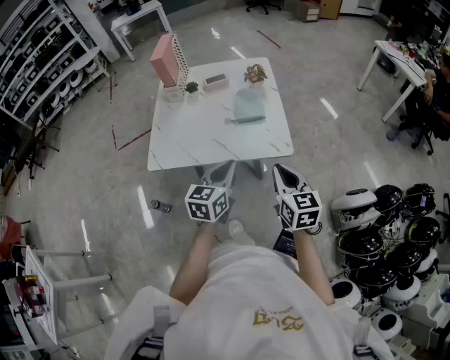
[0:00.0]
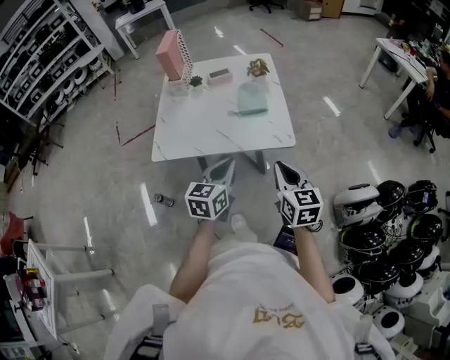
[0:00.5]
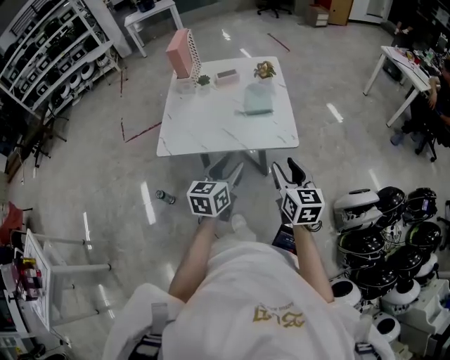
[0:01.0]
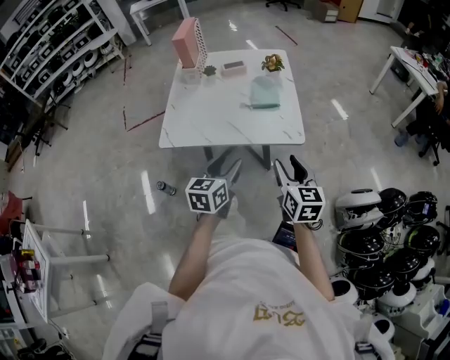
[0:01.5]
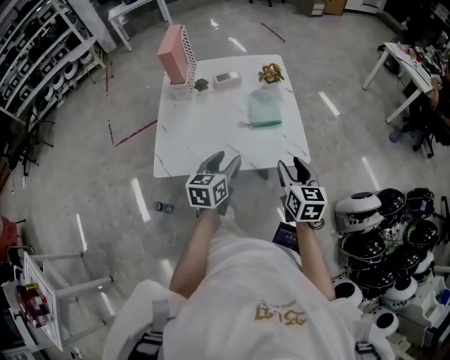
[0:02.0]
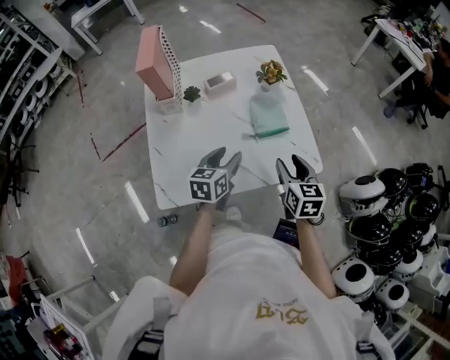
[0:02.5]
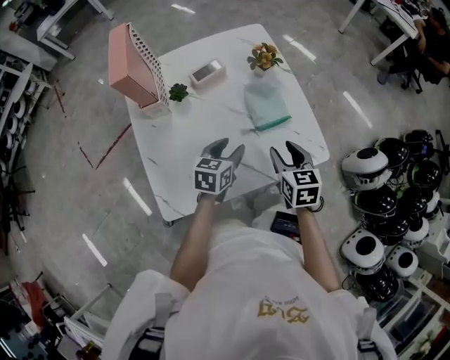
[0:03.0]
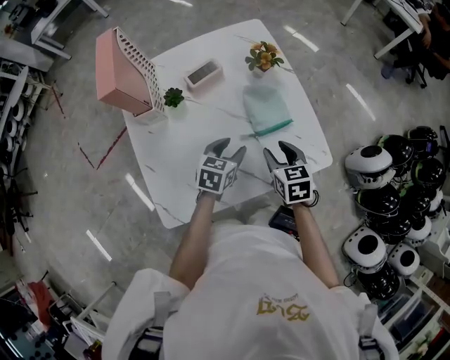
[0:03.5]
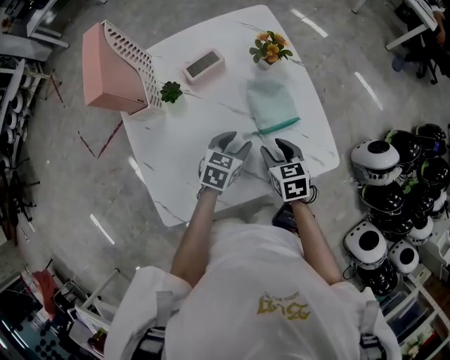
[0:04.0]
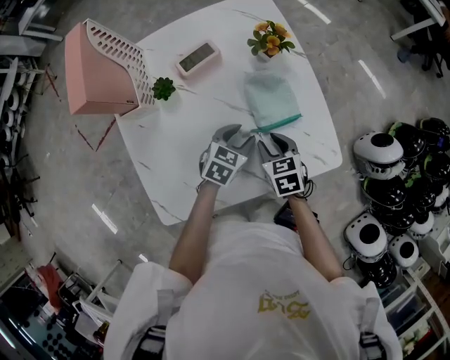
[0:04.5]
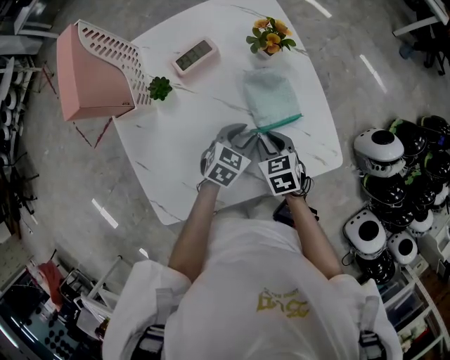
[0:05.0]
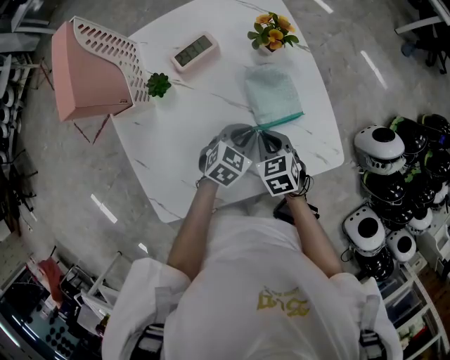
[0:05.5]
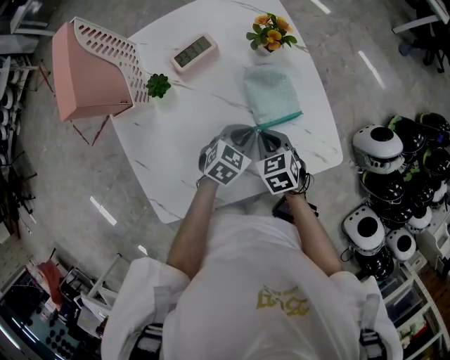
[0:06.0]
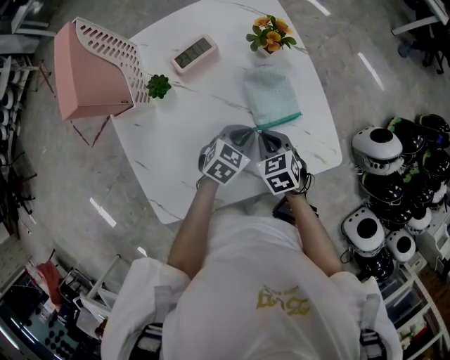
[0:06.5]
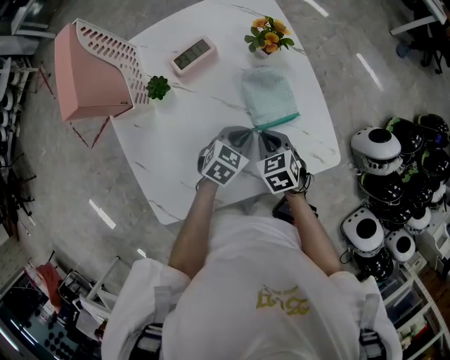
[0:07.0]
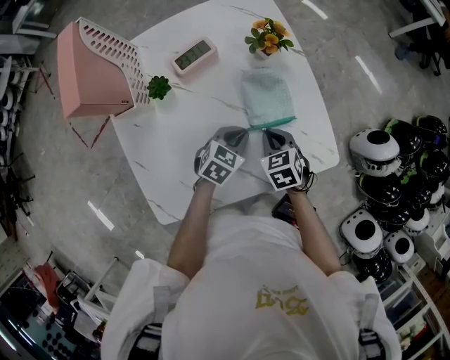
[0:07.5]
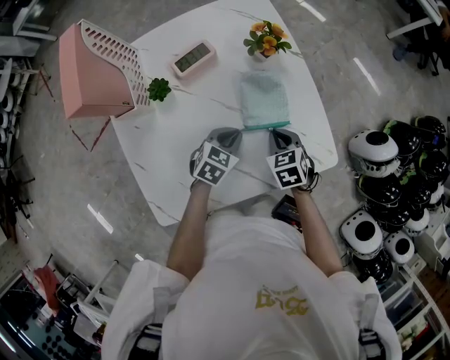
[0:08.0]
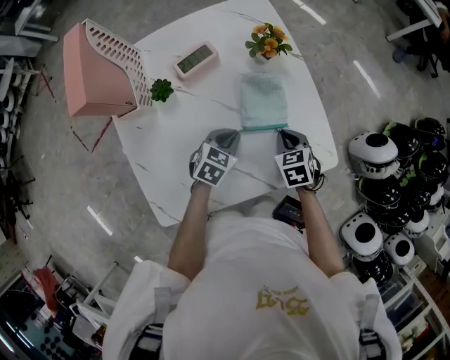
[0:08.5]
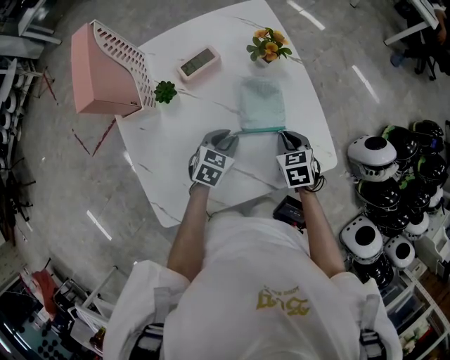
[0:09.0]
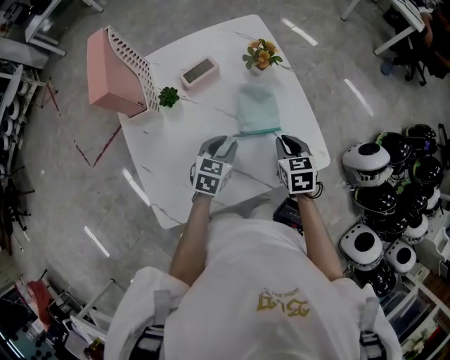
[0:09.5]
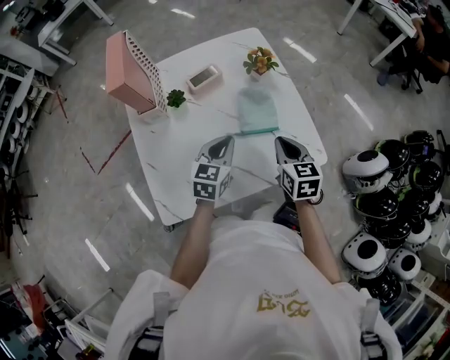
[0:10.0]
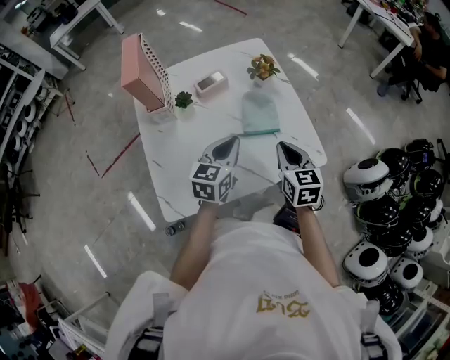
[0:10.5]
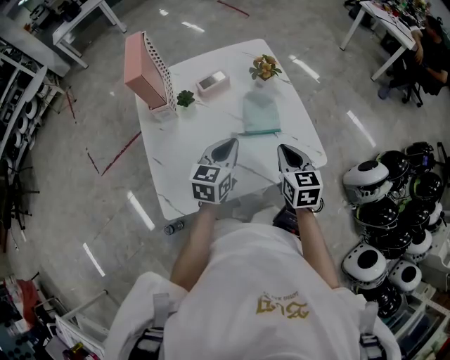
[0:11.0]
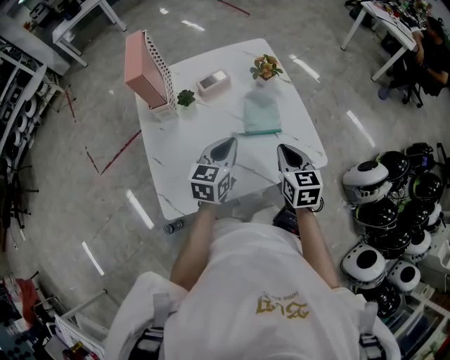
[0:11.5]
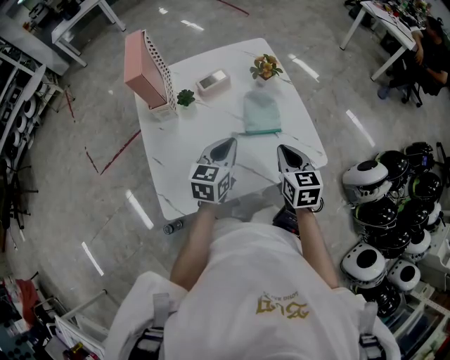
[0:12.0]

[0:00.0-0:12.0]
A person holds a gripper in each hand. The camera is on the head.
0:00.0 to 0:02.0: The right gripper shifts approximately 10 cm forward, and opens its fingers. Meanwhile the left gripper is displaced forward and to the left by approximately 10 cm, and opens.
0:02.0 to 0:04.0: The left gripper travels forward and downward by roughly 25 cm, and changes its angle by some 40 degrees, while the right gripper moves forward, downward and to the left, roughly 30 cm, and turns by some 30 degrees.
0:04.0 to 0:06.0: The left gripper ends up roughly 5 cm from where it was, and closes. Meanwhile the right gripper moves approximately 5 cm, and closes up.
0:06.0 to 0:08.0: The grippers make only small movements.
0:08.0 to 0:10.0: The grippers both shift upward by roughly 15 cm. The right gripper rotates about 30 degrees. Meanwhile the left gripper turns by about 30 degrees, and opens and closes again.
0:10.0 to 0:12.0: There are only small adjustments of the grippers.

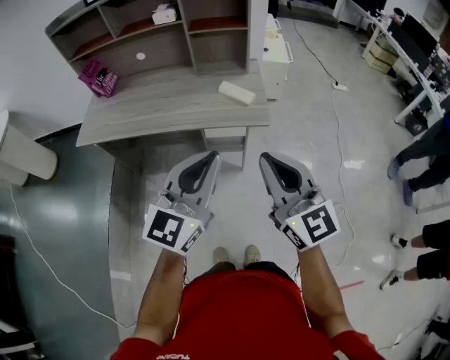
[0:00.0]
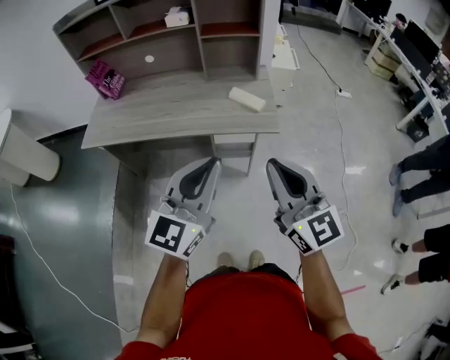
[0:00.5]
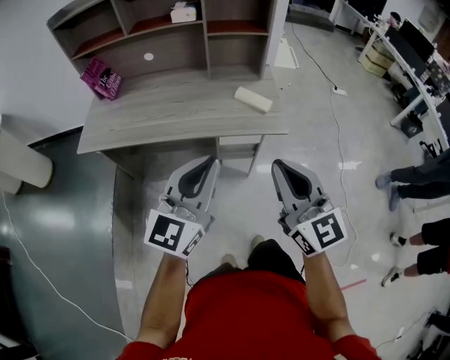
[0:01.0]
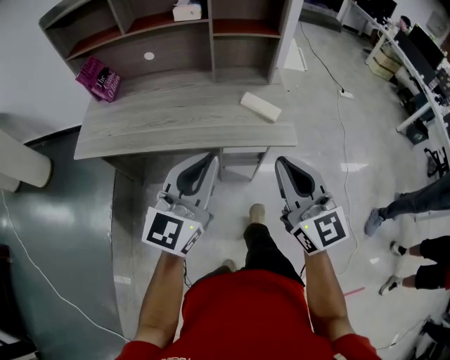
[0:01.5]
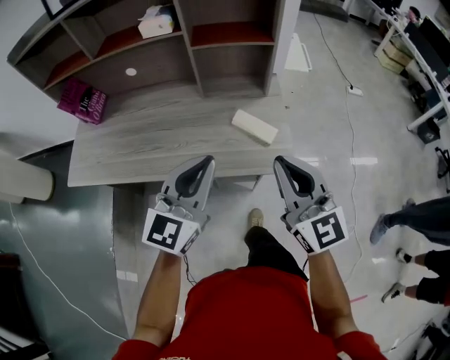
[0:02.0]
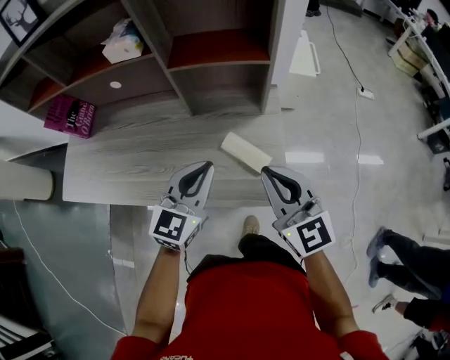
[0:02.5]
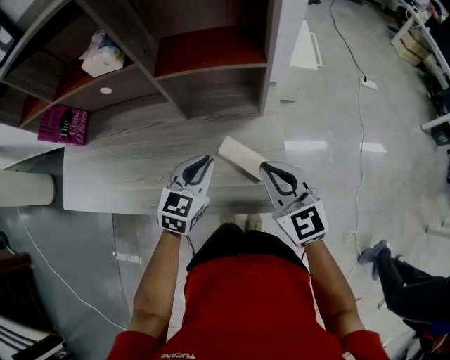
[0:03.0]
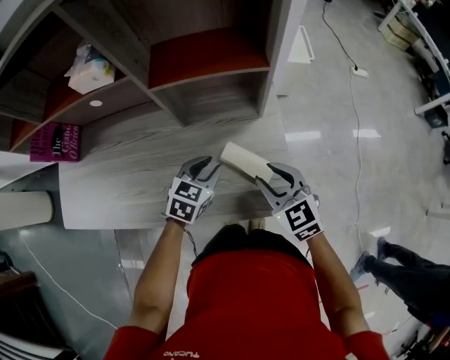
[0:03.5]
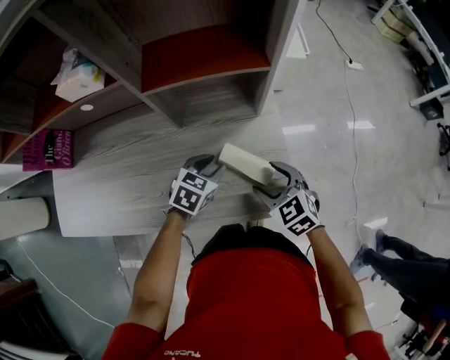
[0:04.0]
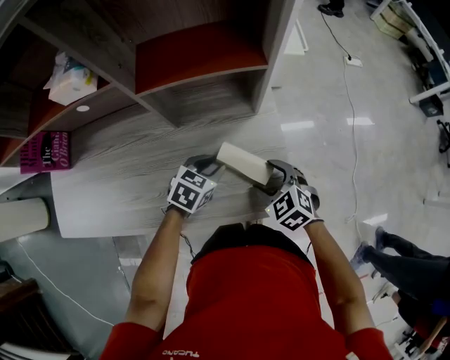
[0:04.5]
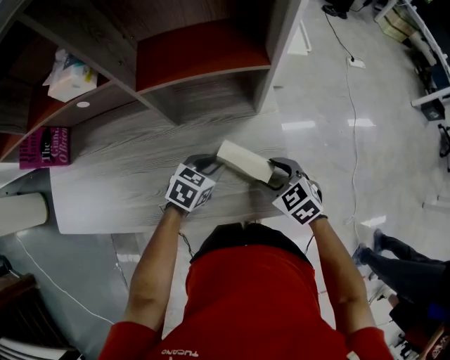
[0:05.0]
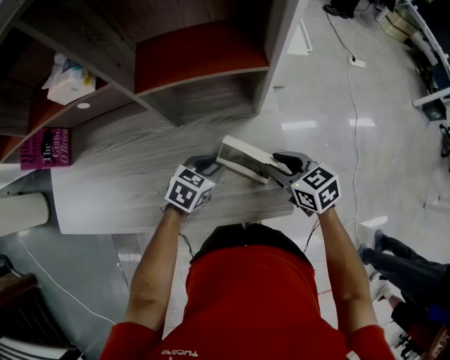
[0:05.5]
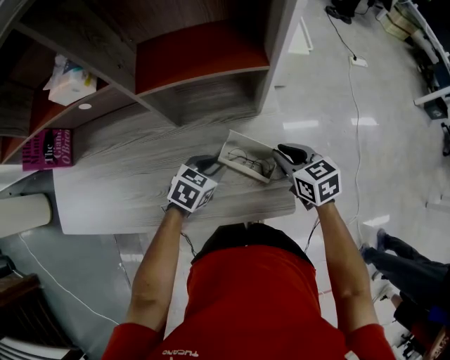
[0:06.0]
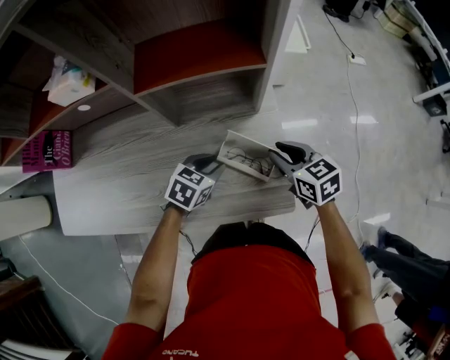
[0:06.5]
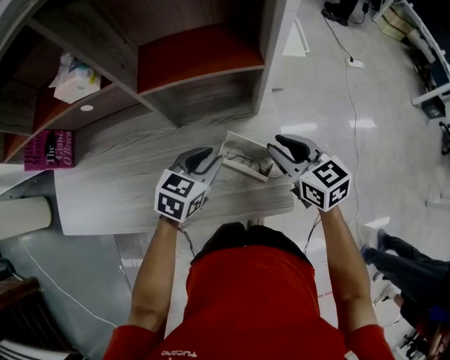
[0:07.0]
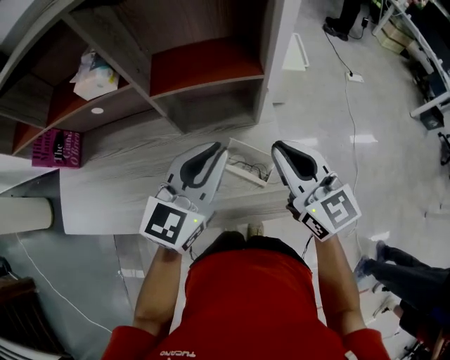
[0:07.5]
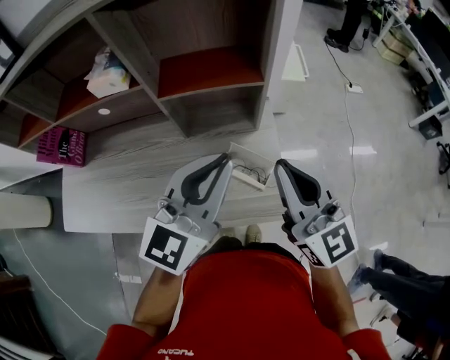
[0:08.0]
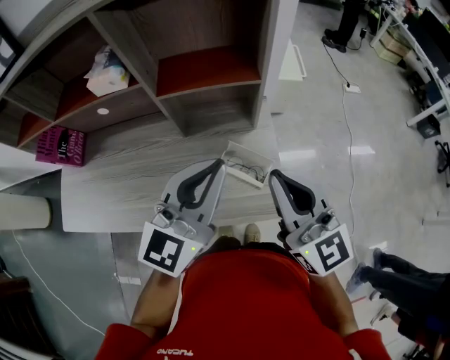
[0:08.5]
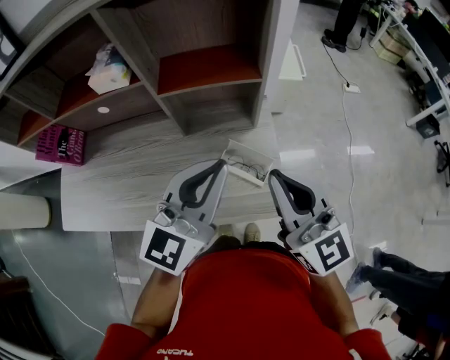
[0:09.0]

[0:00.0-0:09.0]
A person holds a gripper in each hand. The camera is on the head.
0:00.0 to 0:02.0: Both grippers travel together forward, some 25 cm.
0:02.0 to 0:04.5: Both grippers travel together downward and forward, roughly 35 cm. The right gripper tilts its fingers about 50 degrees downward, and opens up. Meanwhile the left gripper angles its fingers downward, by about 50 degrees, and opens.
0:04.5 to 0:07.0: The right gripper shifts roughly 15 cm upward and forward, turns by some 40 degrees, and closes its fingers, while the left gripper shifts some 10 cm upward.
0:07.0 to 0:09.0: The right gripper heads upward and backward, covering roughly 20 cm, rotates some 30 degrees, and closes up. The left gripper moves upward, some 25 cm, tips its fingers upward by some 40 degrees, and closes up.

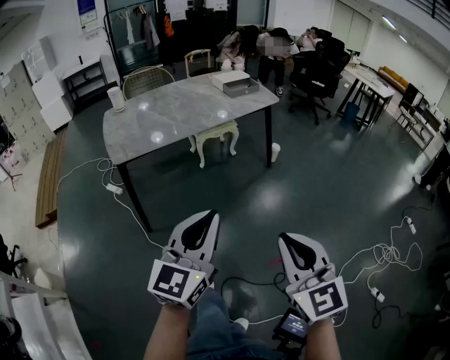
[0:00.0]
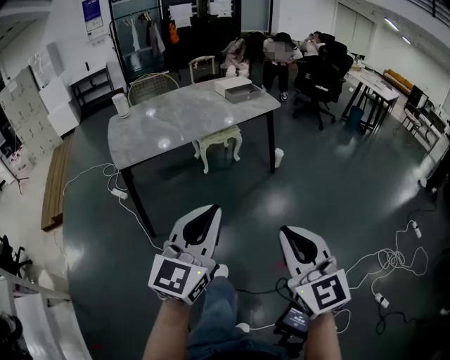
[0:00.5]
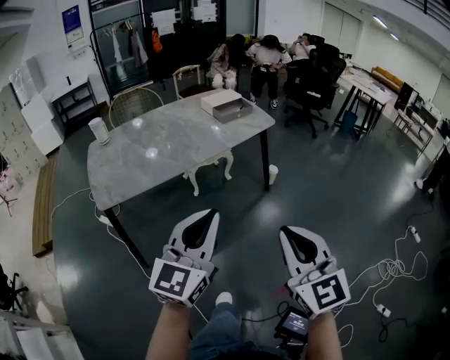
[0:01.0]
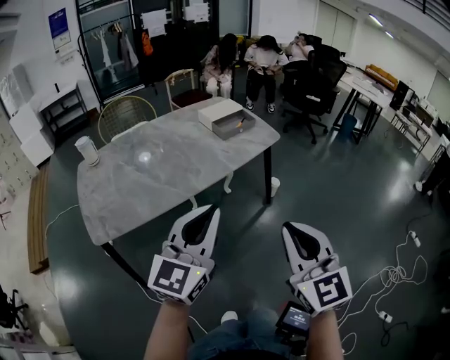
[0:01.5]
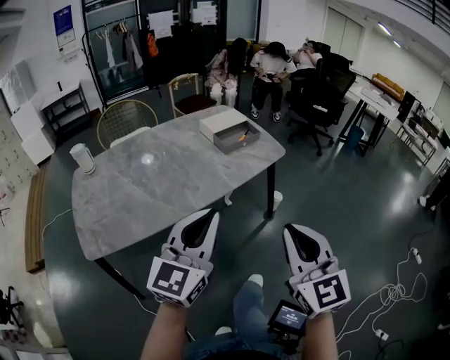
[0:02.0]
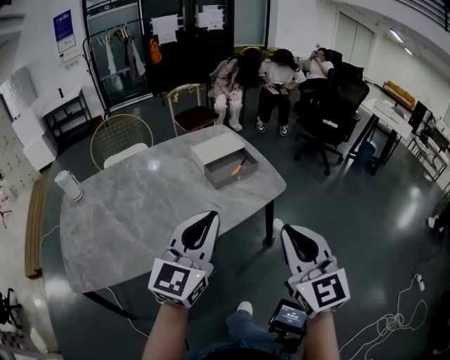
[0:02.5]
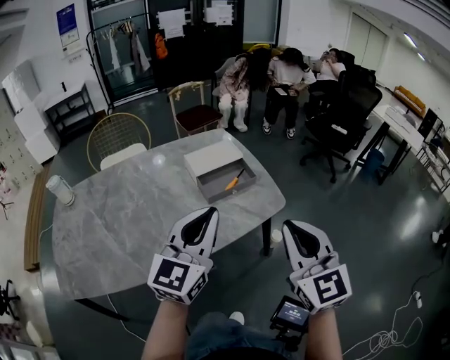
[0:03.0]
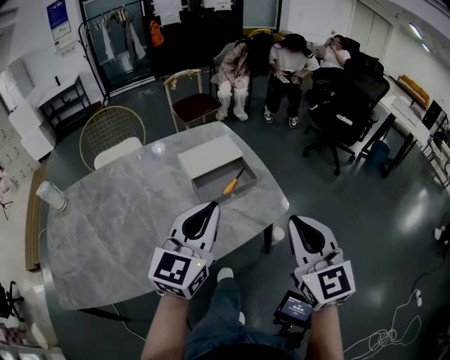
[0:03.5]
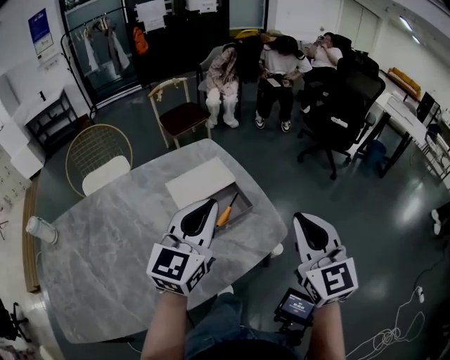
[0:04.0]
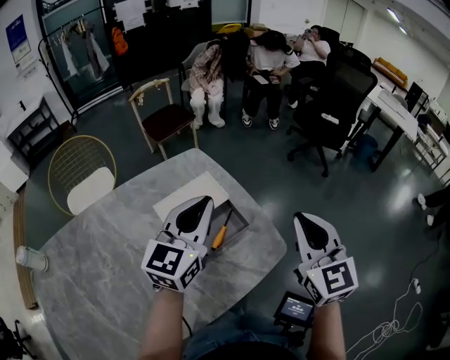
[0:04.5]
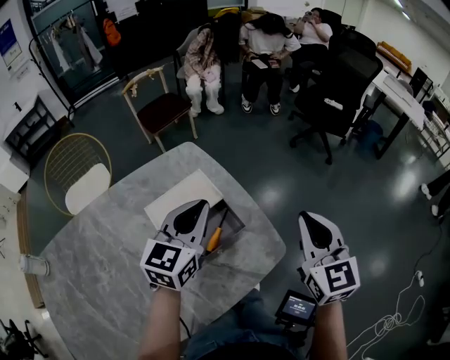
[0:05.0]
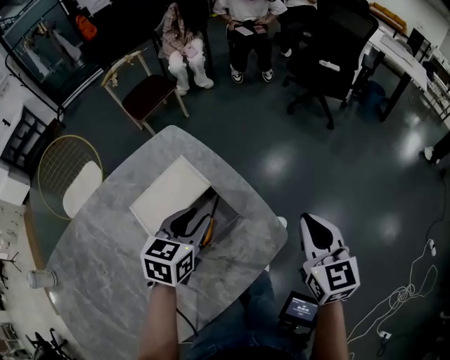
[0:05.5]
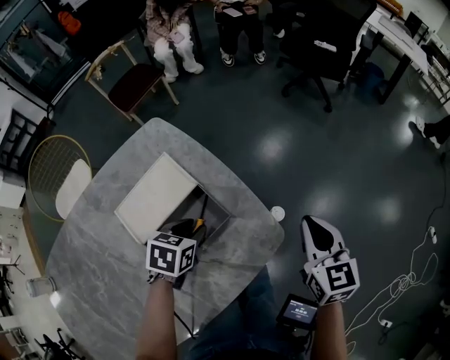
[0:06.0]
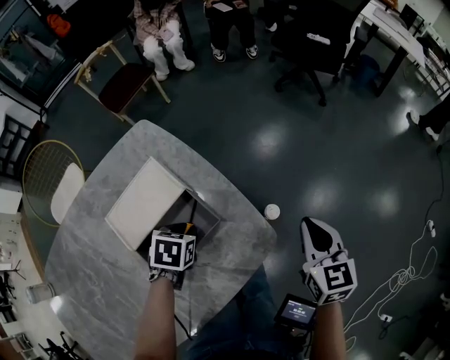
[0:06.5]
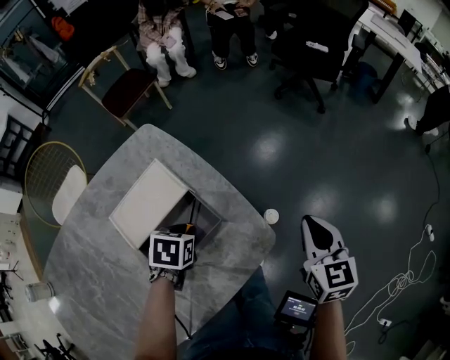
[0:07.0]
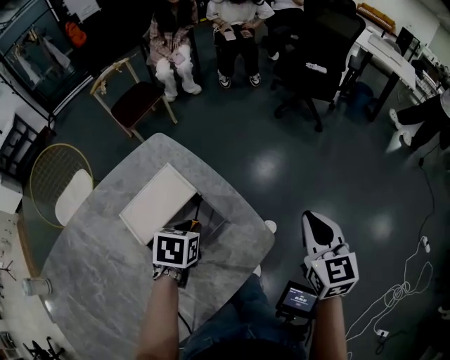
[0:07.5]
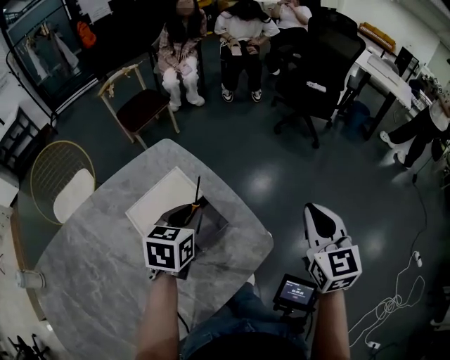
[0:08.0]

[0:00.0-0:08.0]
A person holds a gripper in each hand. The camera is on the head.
0:00.0 to 0:02.0: The pair of grippers is taken forward, roughly 40 cm.
0:02.0 to 0:04.0: The pair of grippers is taken forward, some 50 cm.
0:04.0 to 0:06.0: The left gripper is displaced downward by some 30 cm, tilts its fingers approximately 60 degrees downward, and opens its fingers, while the right gripper travels downward, forward and to the right by about 25 cm, and swivels approximately 30 degrees.
0:06.0 to 0:08.0: The left gripper shifts some 15 cm upward and forward, and turns by roughly 20 degrees. Meanwhile the right gripper shifts roughly 10 cm upward.
